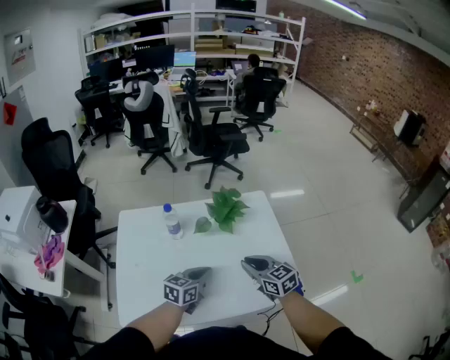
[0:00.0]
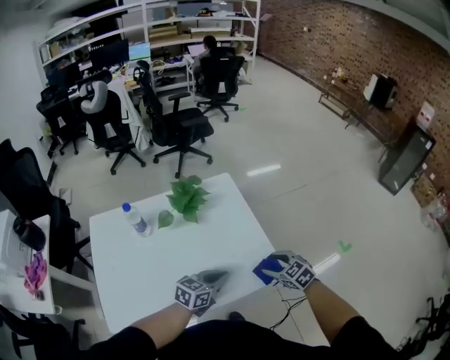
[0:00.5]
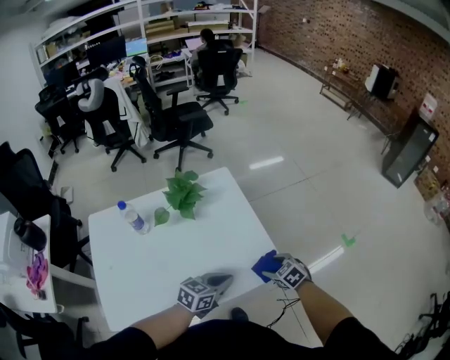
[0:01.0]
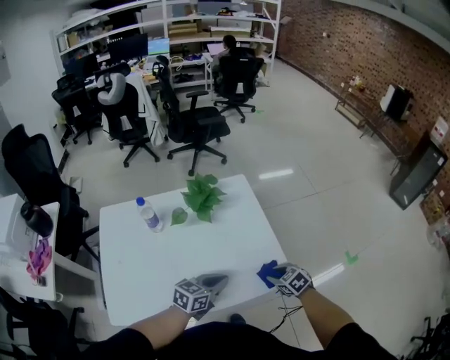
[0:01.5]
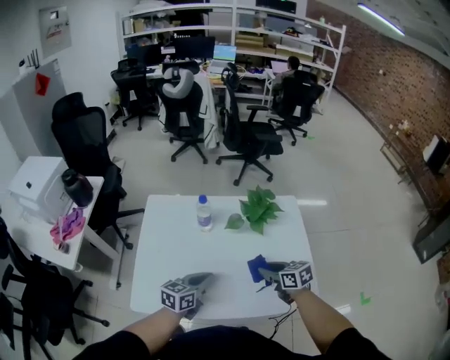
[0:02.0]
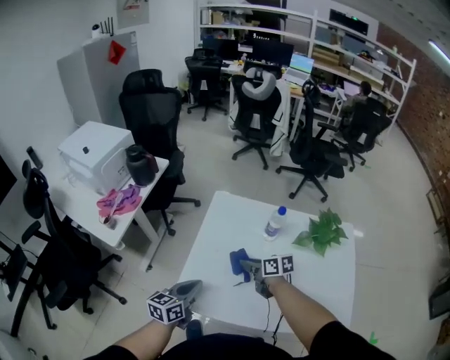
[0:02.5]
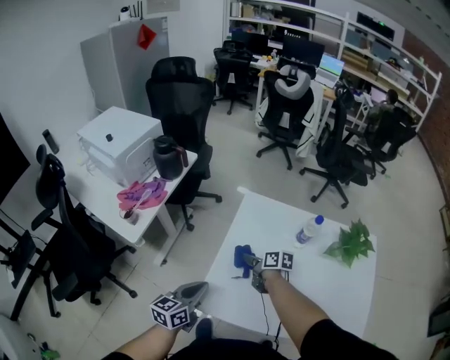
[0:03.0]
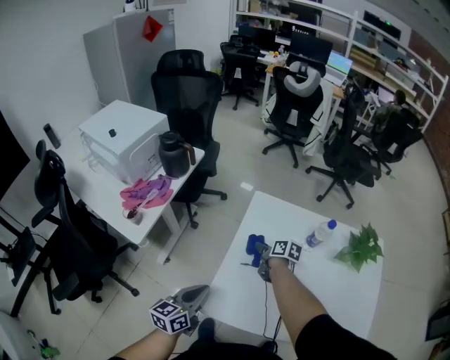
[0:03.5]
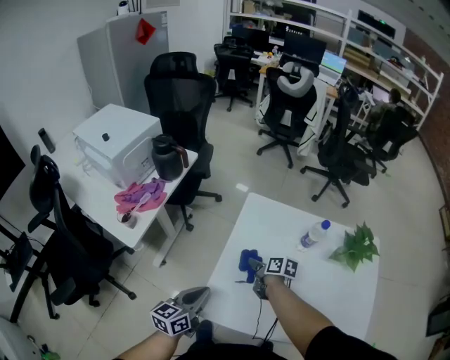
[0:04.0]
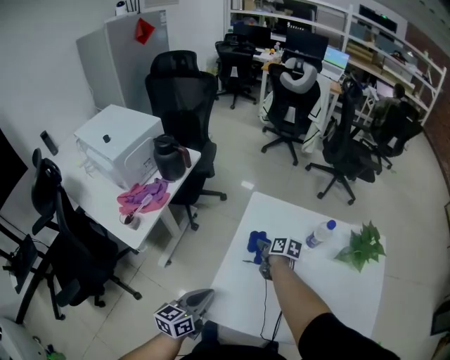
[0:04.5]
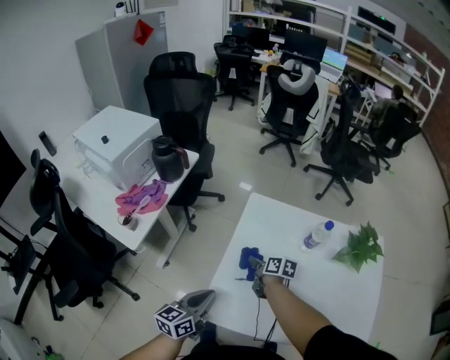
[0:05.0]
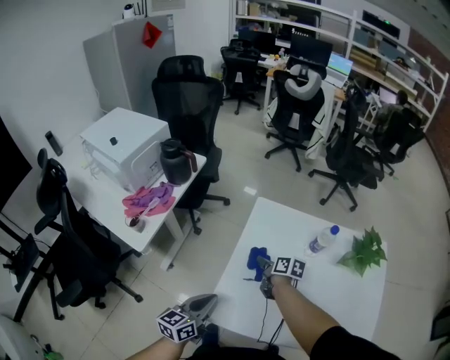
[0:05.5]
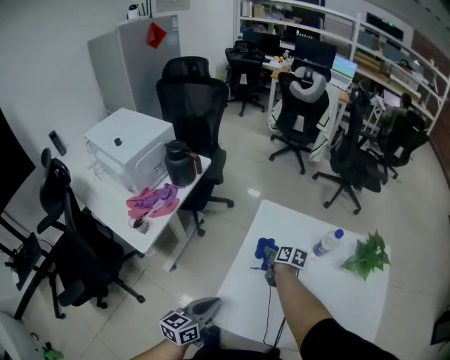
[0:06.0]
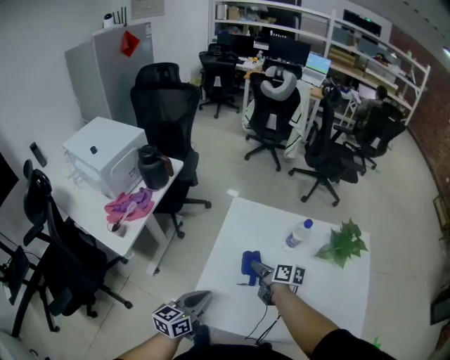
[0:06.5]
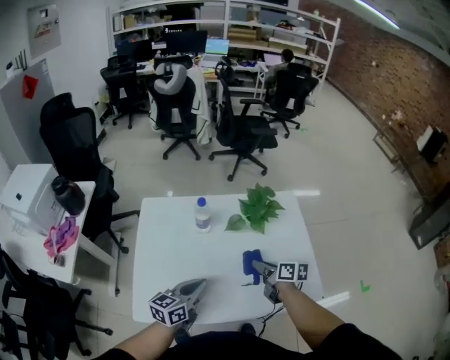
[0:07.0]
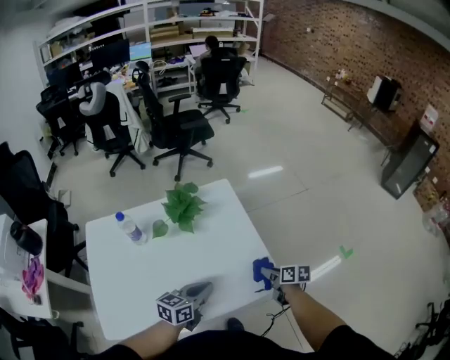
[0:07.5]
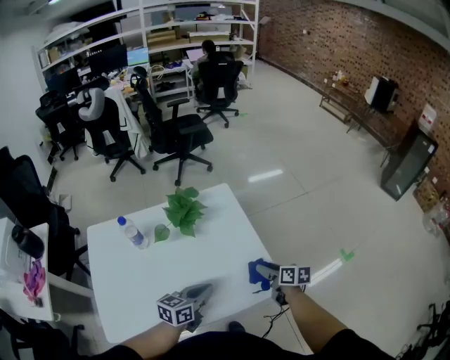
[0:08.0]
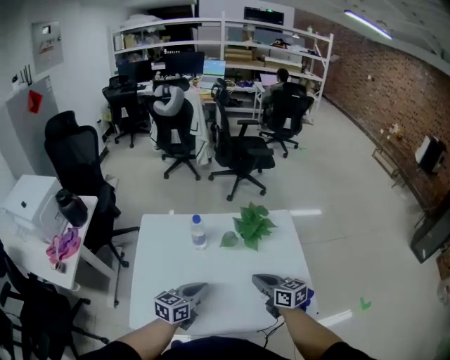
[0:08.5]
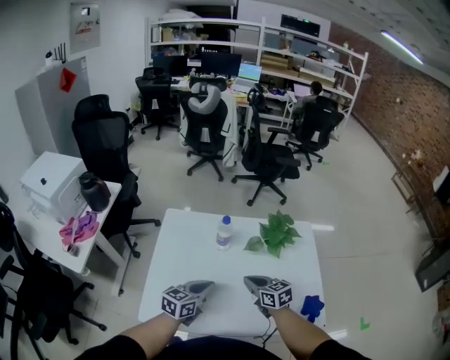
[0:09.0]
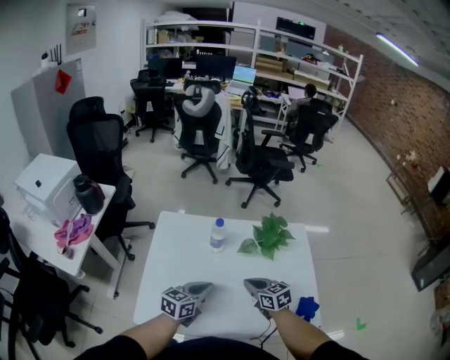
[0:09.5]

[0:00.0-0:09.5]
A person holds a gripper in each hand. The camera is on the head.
0:00.0 to 0:02.0: The right gripper travels downward and back again, some 15 cm each way, turns by some 20 degrees, and opens, then closes again.
0:02.0 to 0:04.0: The left gripper changes place by about 35 cm, and rotates some 30 degrees. Meanwhile the right gripper changes place by approximately 40 cm, and swivels approximately 30 degrees.
0:04.0 to 0:05.5: The right gripper travels forward and back again, about 10 cm each way.
0:05.5 to 0:07.5: The two grippers travel together, about 60 cm. The right gripper rotates some 30 degrees, while the left gripper swivels about 50 degrees.
0:07.5 to 0:09.5: The left gripper shifts by some 25 cm, and swivels roughly 20 degrees, while the right gripper ends up approximately 40 cm from where it was, rotates around the line of its fingers by roughly 50 degrees, counterclockwise from behind, and closes its fingers.

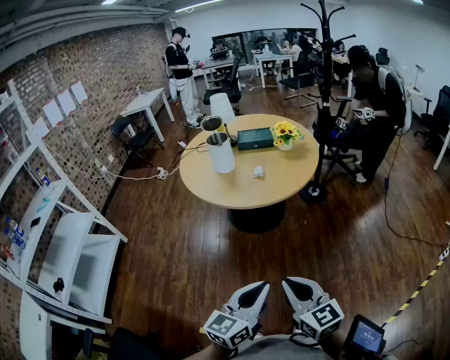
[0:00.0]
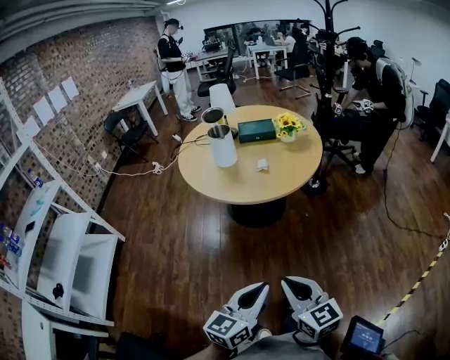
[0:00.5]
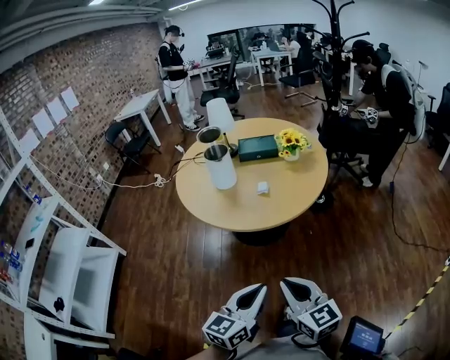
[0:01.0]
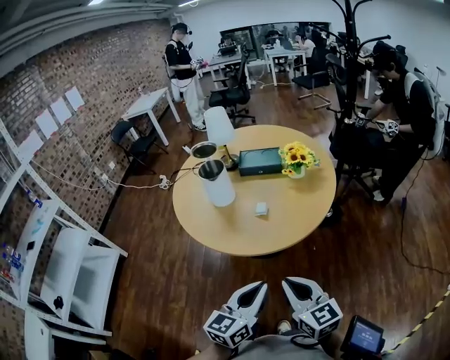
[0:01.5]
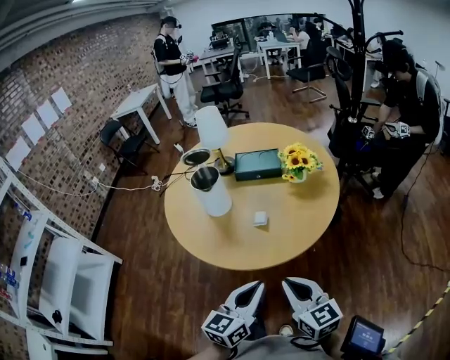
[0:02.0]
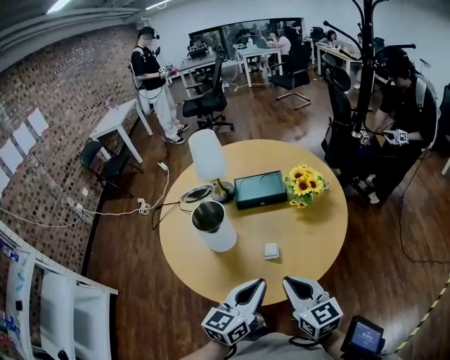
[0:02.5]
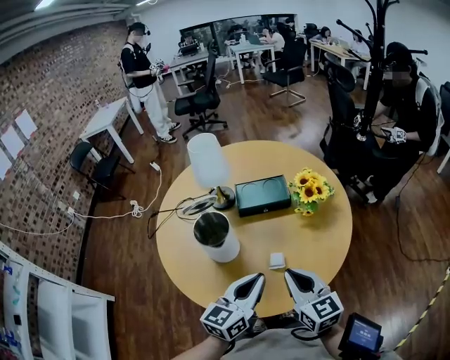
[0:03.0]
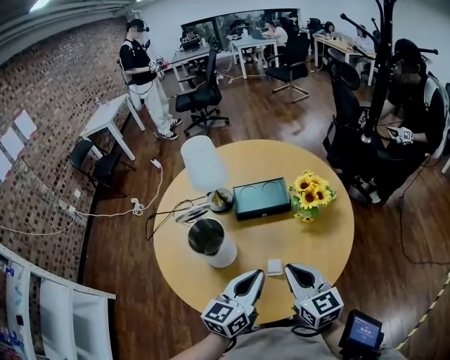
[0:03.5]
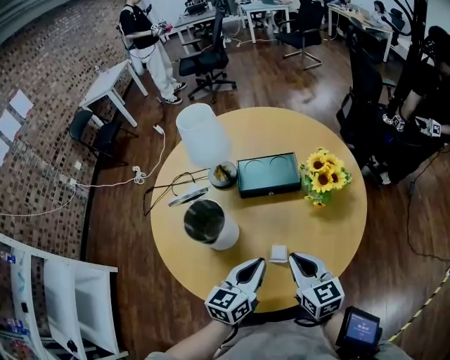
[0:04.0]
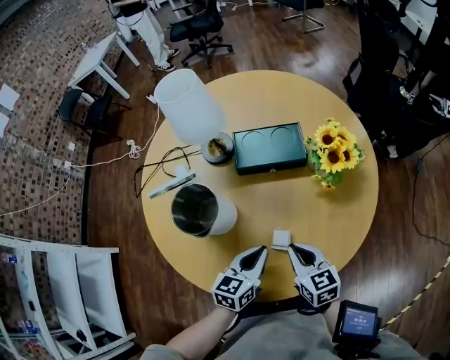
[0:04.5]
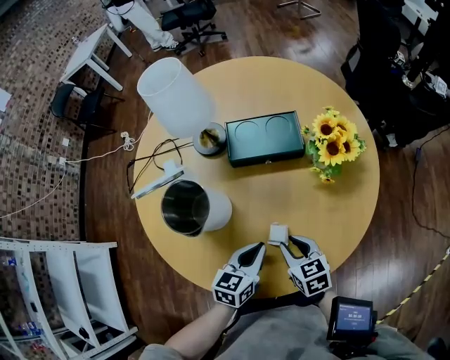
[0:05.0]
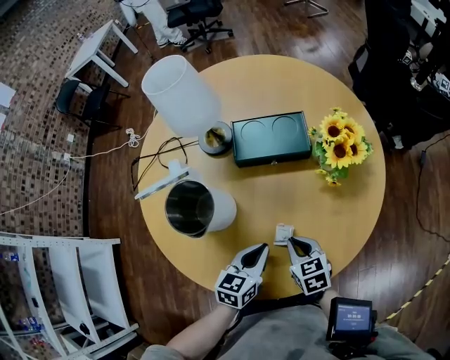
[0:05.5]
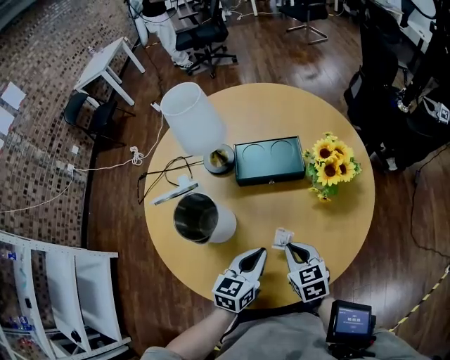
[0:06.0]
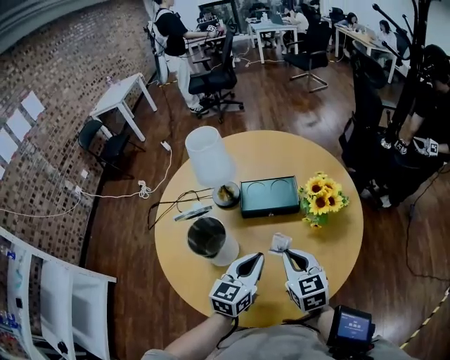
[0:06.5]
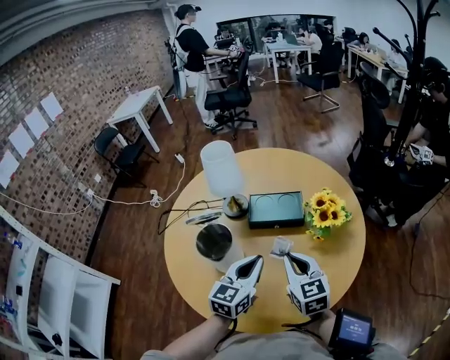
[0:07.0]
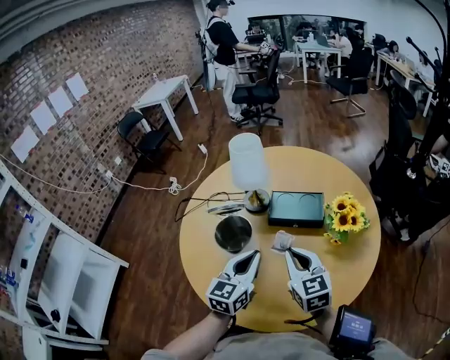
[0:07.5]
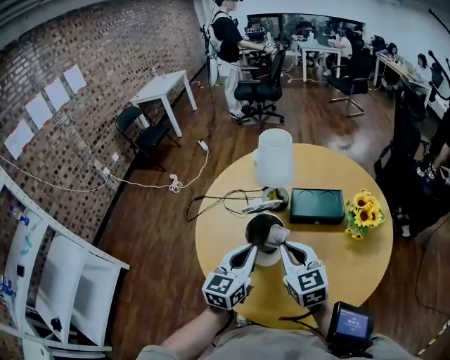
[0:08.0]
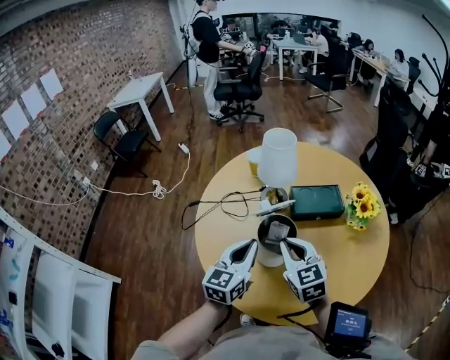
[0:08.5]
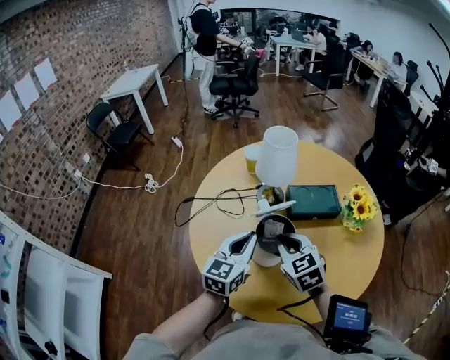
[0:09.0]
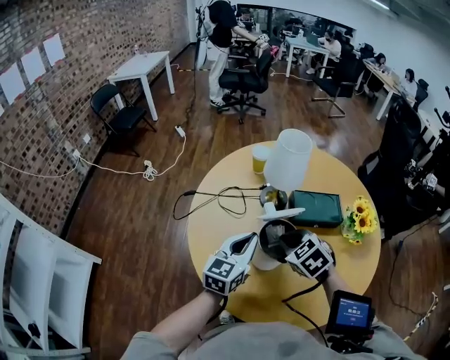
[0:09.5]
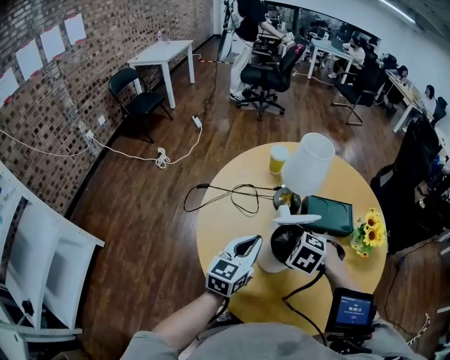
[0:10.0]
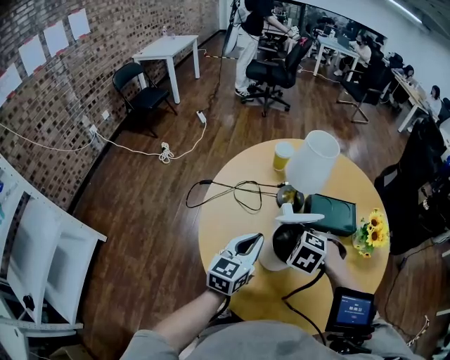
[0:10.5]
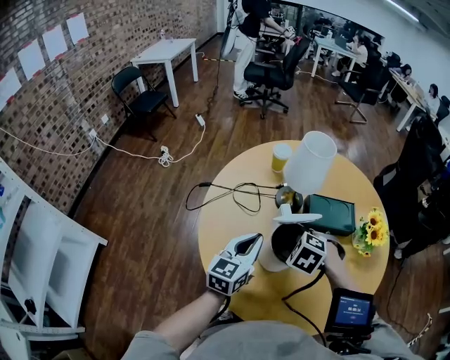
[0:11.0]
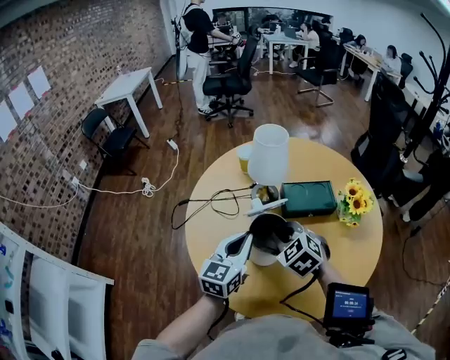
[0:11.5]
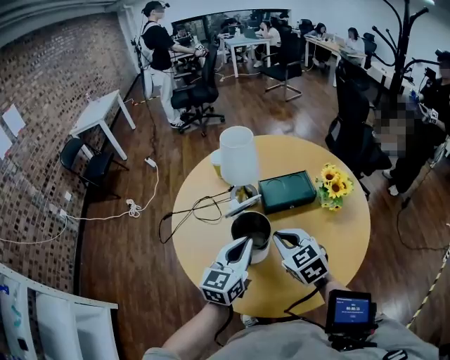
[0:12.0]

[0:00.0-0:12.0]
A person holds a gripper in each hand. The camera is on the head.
0:00.0 to 0:02.0: Both grippers move forward, about 40 cm.
0:02.0 to 0:04.0: Both grippers travel together forward, roughly 30 cm.
0:04.0 to 0:06.0: The right gripper travels downward by about 10 cm, and opens, then closes again. Meanwhile the left gripper shifts roughly 5 cm downward.
0:06.0 to 0:08.0: The left gripper goes approximately 25 cm to the left and upward, and swivels roughly 20 degrees, while the right gripper shifts roughly 25 cm upward and to the left, and turns by some 30 degrees.
0:08.0 to 0:10.0: The right gripper goes approximately 15 cm downward, forward and to the left, and tips its fingers downward by approximately 50 degrees; the left gripper is displaced to the left, forward and downward by some 10 cm.
0:10.0 to 0:12.0: The right gripper shifts some 10 cm upward, to the right and backward, and points its fingers roughly 40 degrees further upward; the left gripper is displaced to the right by roughly 10 cm.

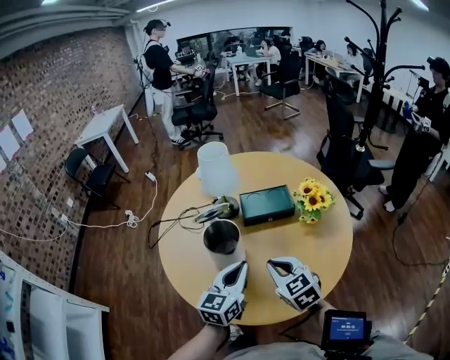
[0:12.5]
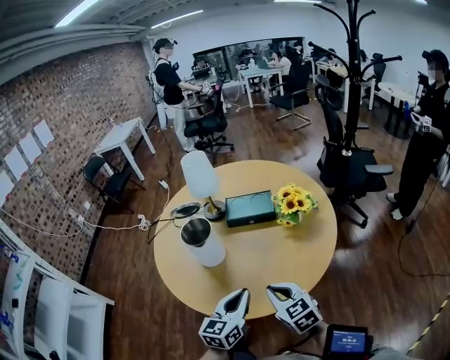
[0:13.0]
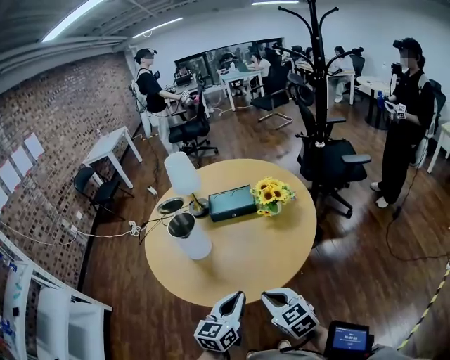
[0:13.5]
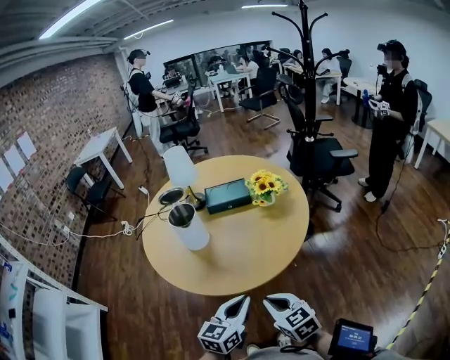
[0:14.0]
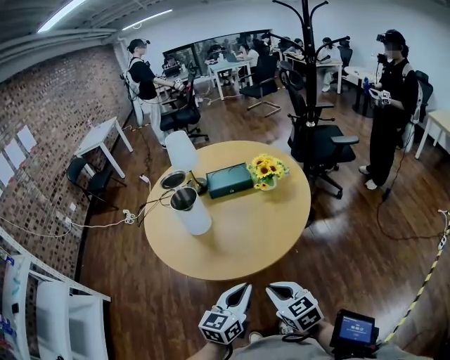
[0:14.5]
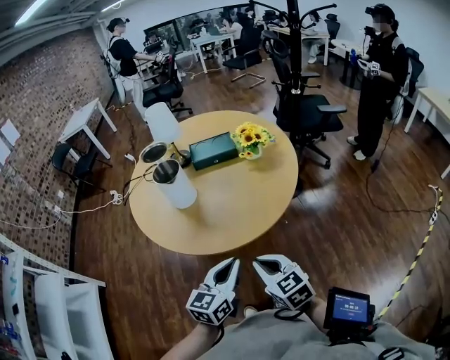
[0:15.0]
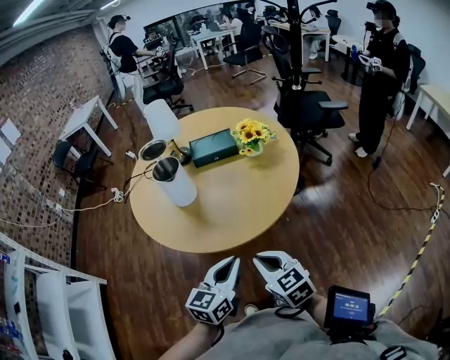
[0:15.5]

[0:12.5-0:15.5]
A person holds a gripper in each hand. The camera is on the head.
0:12.5 to 0:14.0: The grippers both shift backward and to the right by approximately 30 cm.
0:14.0 to 0:15.5: The grippers make only small movements.

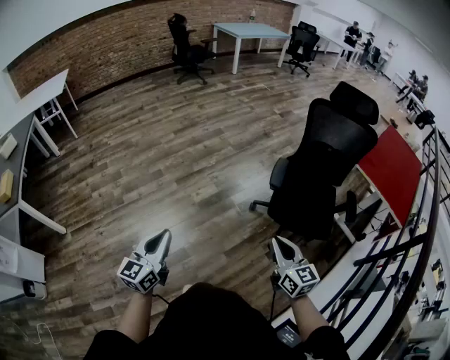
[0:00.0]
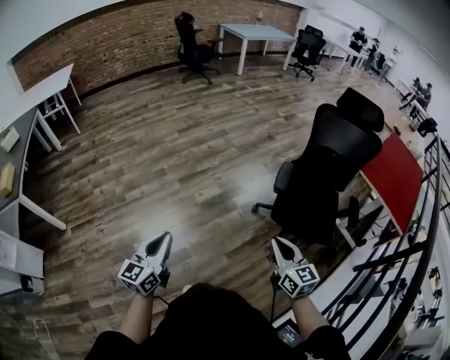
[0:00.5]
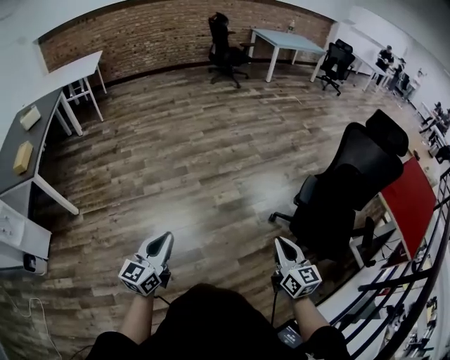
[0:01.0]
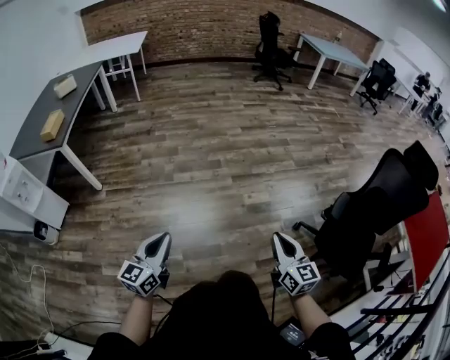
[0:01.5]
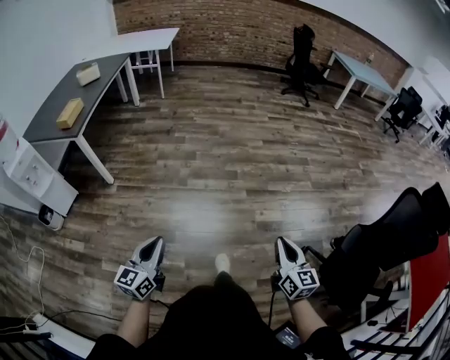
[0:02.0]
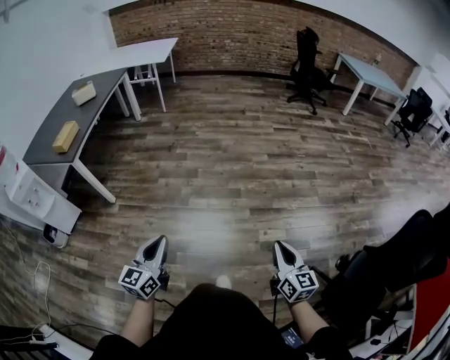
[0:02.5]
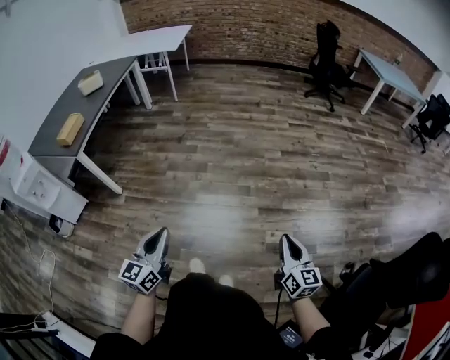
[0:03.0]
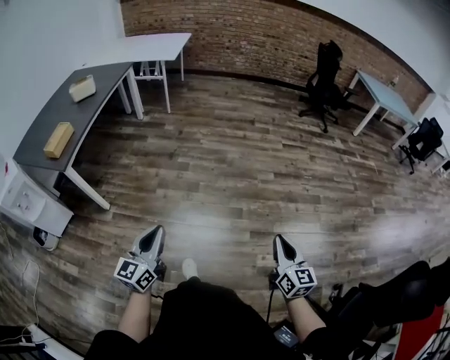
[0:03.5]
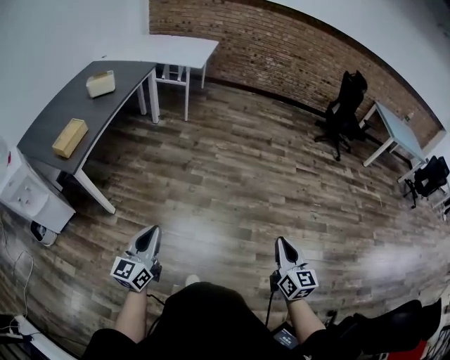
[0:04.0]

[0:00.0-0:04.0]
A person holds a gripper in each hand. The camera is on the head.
0:00.0 to 0:02.0: The right gripper moves about 30 cm, and turns by approximately 20 degrees. The left gripper moves roughly 25 cm, and turns by roughly 30 degrees.
0:02.0 to 0:04.0: The grippers both shift forward by roughly 40 cm.
